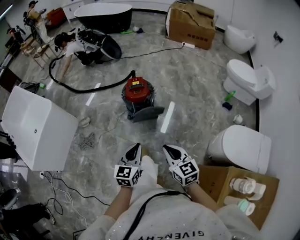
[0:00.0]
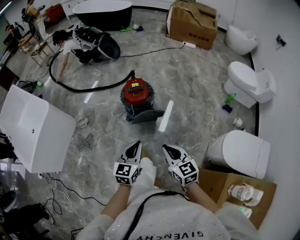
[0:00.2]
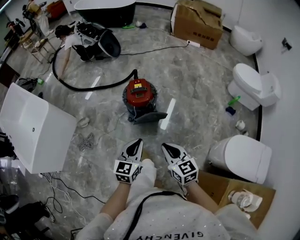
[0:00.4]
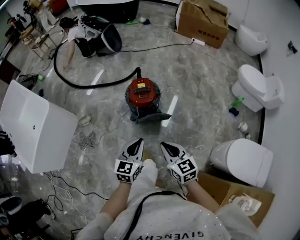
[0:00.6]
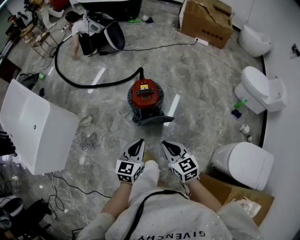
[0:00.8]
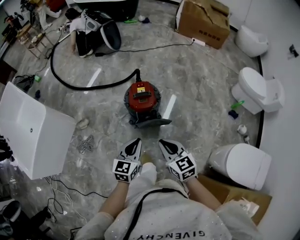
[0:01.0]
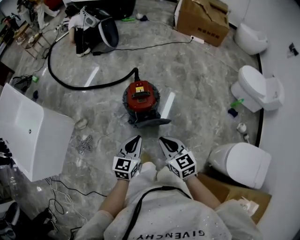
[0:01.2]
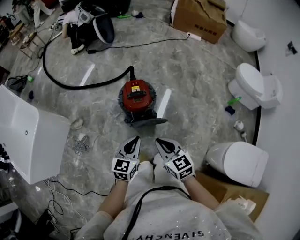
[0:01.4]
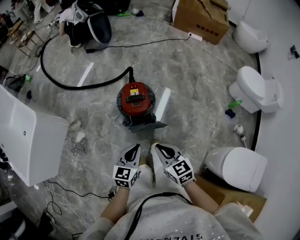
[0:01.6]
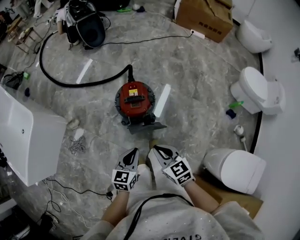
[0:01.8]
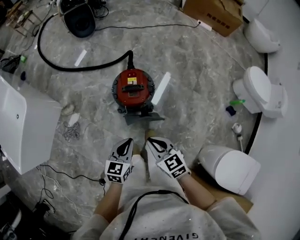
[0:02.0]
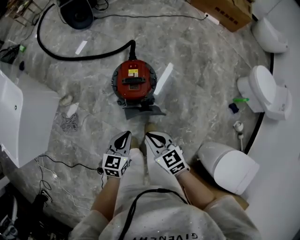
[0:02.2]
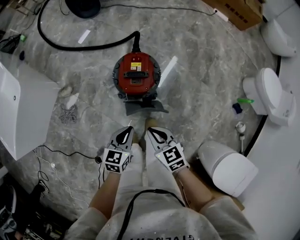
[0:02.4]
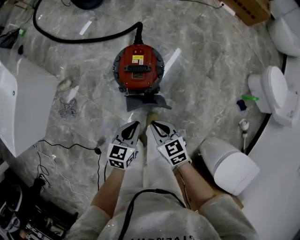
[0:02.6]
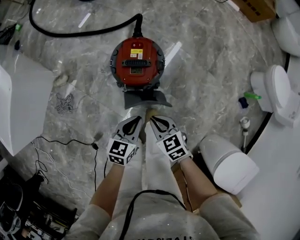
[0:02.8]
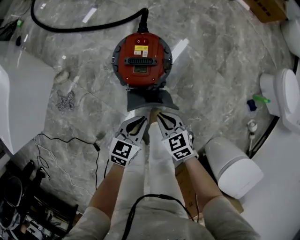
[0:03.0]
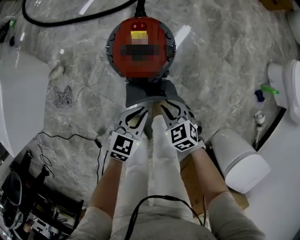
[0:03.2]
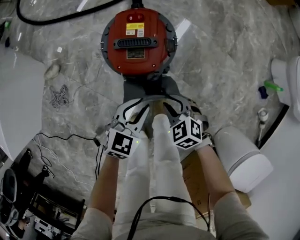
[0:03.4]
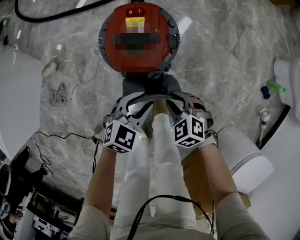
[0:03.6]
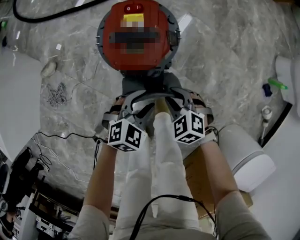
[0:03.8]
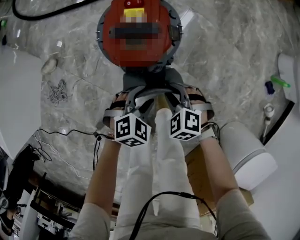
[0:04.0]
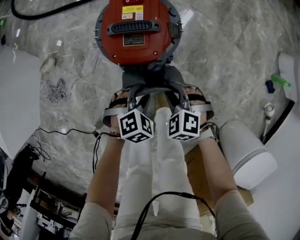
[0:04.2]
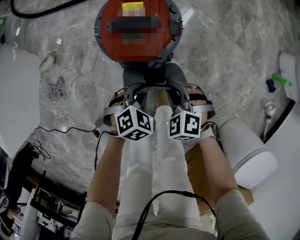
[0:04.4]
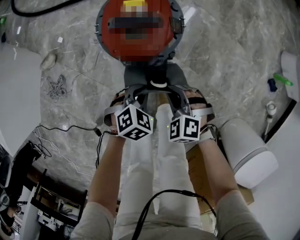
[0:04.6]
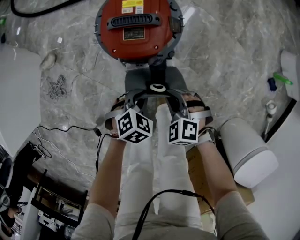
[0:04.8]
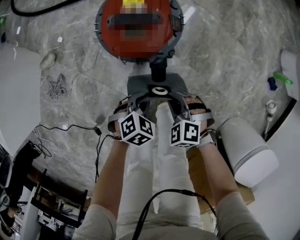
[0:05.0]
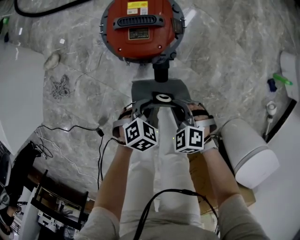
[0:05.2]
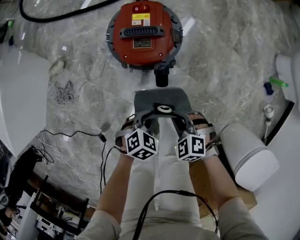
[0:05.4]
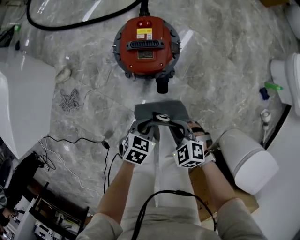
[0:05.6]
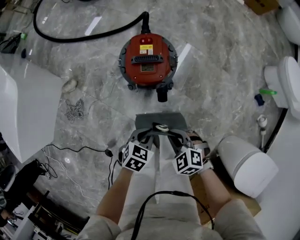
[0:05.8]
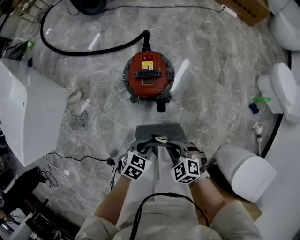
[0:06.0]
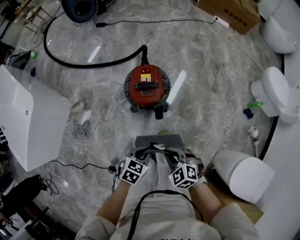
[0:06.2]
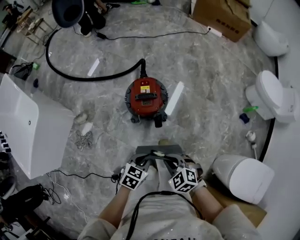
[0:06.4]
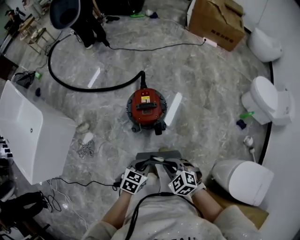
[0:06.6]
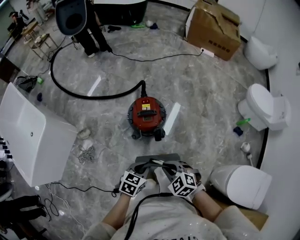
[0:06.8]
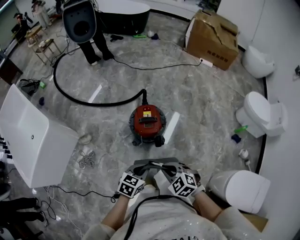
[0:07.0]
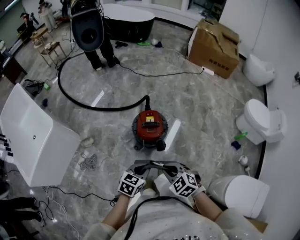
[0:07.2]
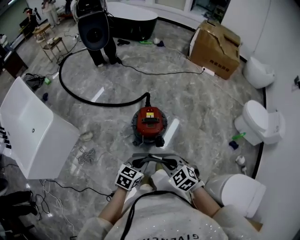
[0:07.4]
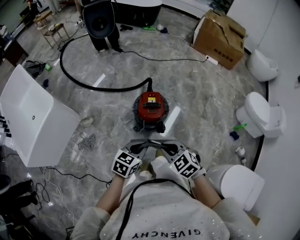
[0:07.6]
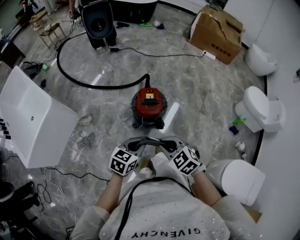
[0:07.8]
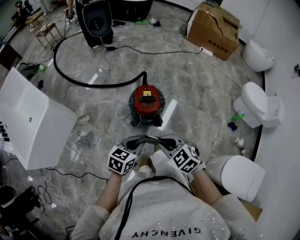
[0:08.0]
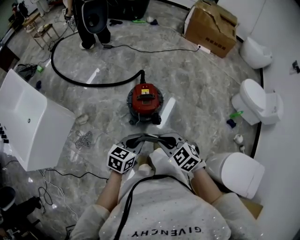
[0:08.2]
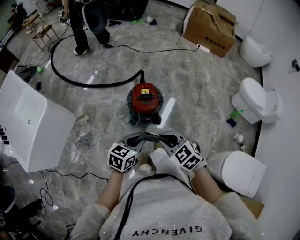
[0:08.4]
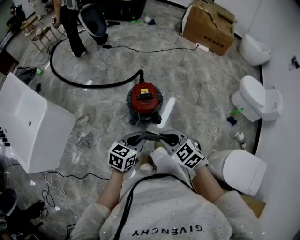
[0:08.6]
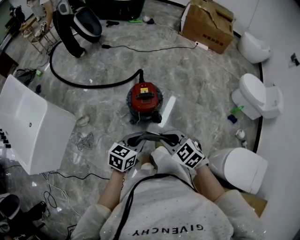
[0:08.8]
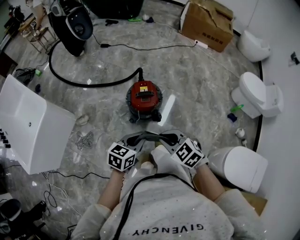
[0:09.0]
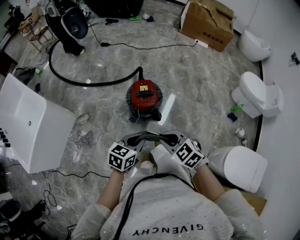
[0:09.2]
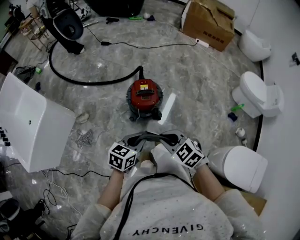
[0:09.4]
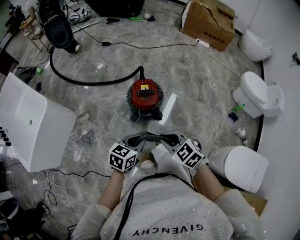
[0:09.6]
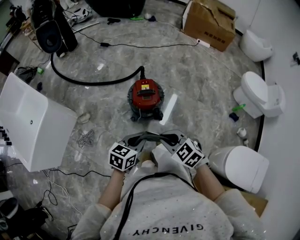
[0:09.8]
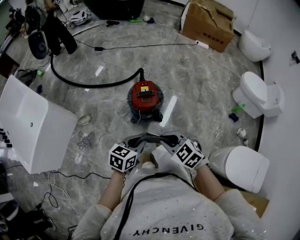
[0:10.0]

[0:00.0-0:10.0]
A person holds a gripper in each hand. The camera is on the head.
0:00.0 to 0:01.4: Both grippers travel together forward, some 20 cm.
0:01.4 to 0:02.8: Both grippers travel together downward and forward, about 20 cm. The right gripper rotates some 30 degrees.
0:02.8 to 0:04.2: Both grippers move downward, about 20 cm. The right gripper changes its angle by roughly 40 degrees, and opens up, while the left gripper twists some 50 degrees clockwise, seen from behind, and opens its fingers.
0:04.2 to 0:05.8: The two grippers go roughly 15 cm upward and backward. The left gripper changes its angle by approximately 30 degrees, and closes.
0:05.8 to 0:07.2: The two grippers go roughly 25 cm upward. The left gripper swivels some 20 degrees.
0:07.2 to 0:08.6: The grippers both shift upward by about 5 cm.
0:08.6 to 0:10.0: The grippers make only small movements.

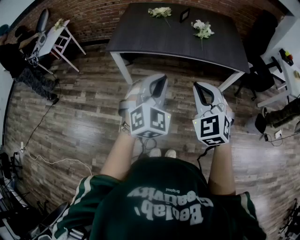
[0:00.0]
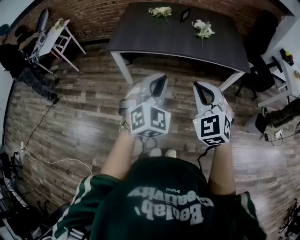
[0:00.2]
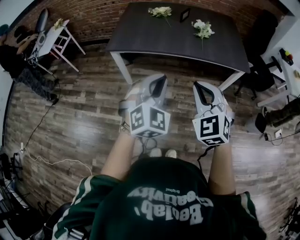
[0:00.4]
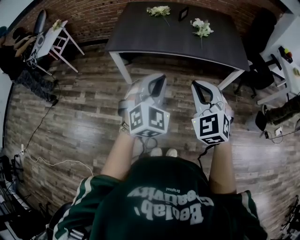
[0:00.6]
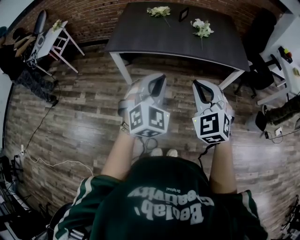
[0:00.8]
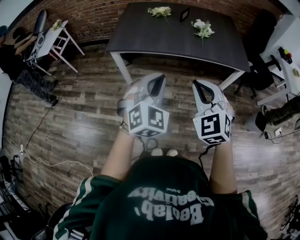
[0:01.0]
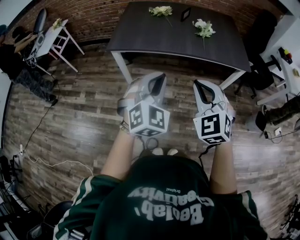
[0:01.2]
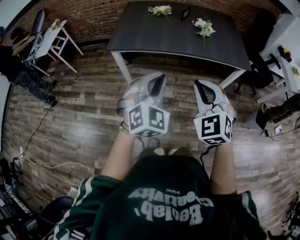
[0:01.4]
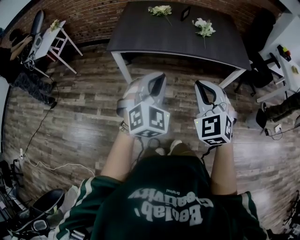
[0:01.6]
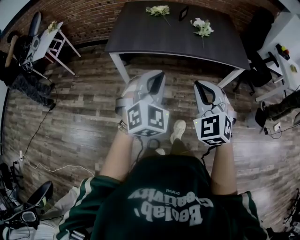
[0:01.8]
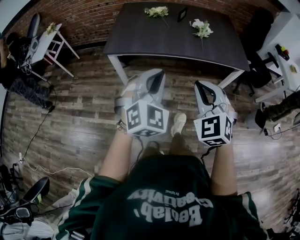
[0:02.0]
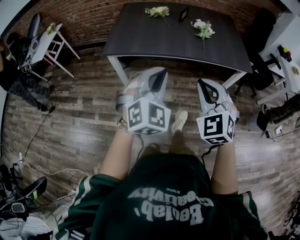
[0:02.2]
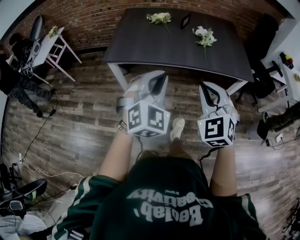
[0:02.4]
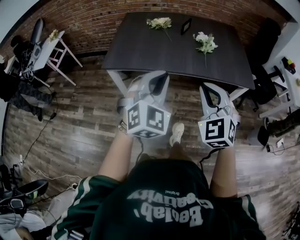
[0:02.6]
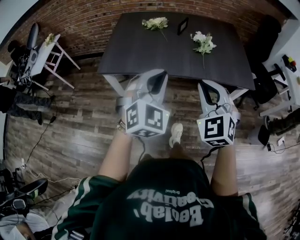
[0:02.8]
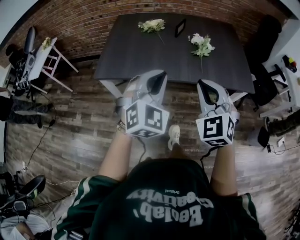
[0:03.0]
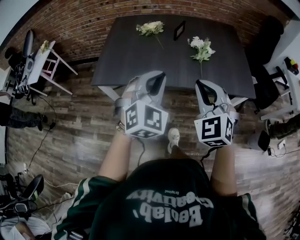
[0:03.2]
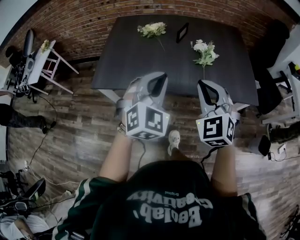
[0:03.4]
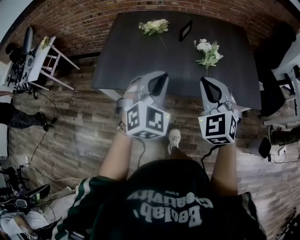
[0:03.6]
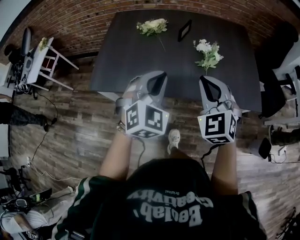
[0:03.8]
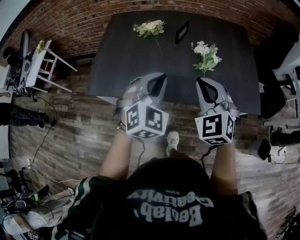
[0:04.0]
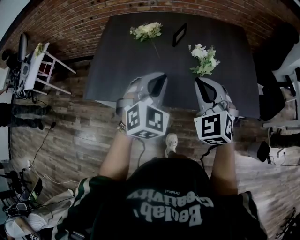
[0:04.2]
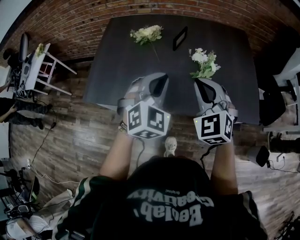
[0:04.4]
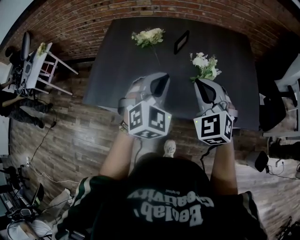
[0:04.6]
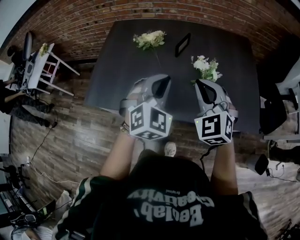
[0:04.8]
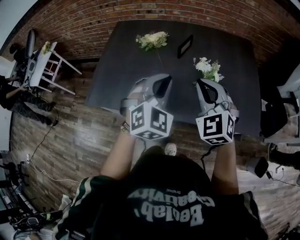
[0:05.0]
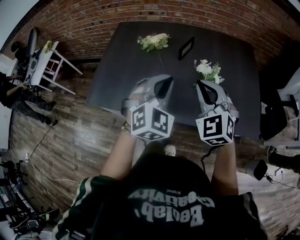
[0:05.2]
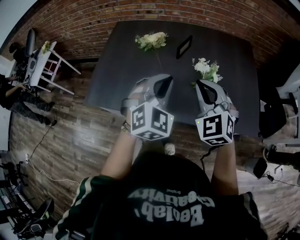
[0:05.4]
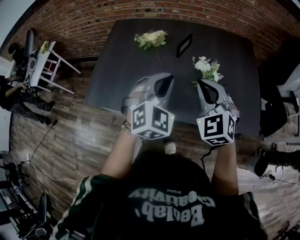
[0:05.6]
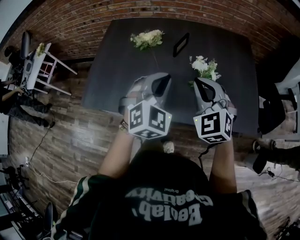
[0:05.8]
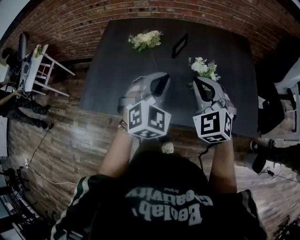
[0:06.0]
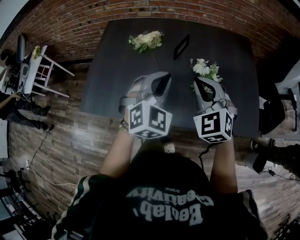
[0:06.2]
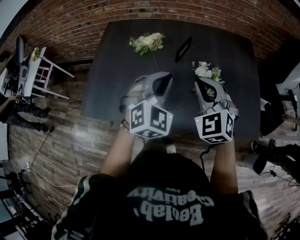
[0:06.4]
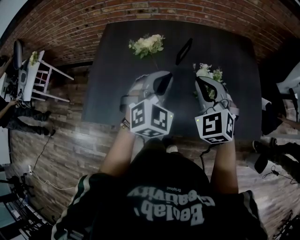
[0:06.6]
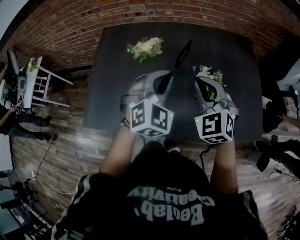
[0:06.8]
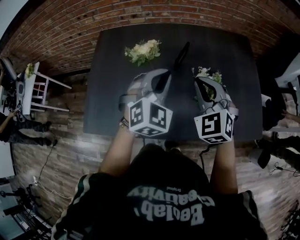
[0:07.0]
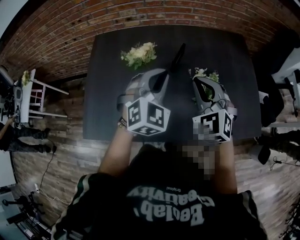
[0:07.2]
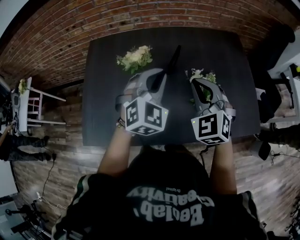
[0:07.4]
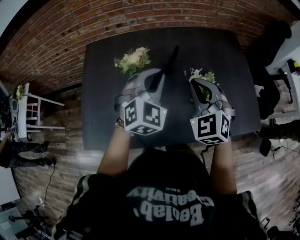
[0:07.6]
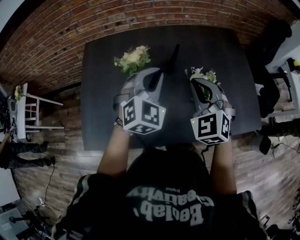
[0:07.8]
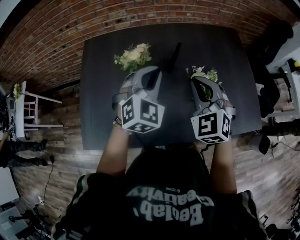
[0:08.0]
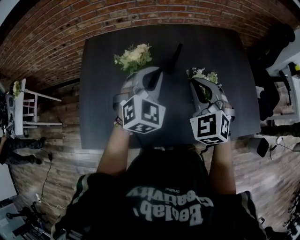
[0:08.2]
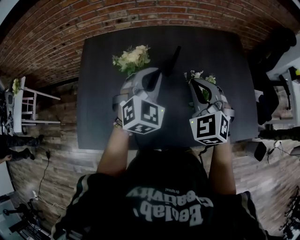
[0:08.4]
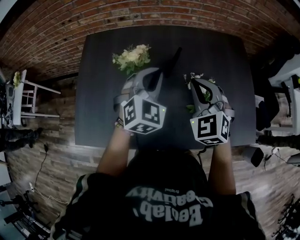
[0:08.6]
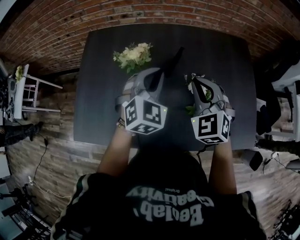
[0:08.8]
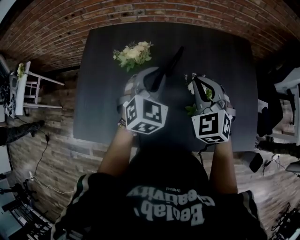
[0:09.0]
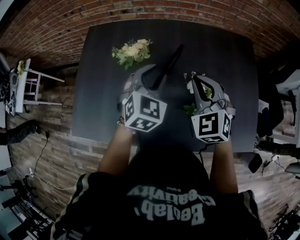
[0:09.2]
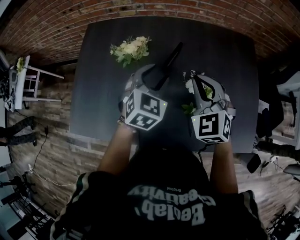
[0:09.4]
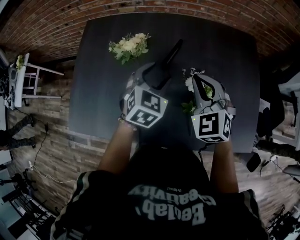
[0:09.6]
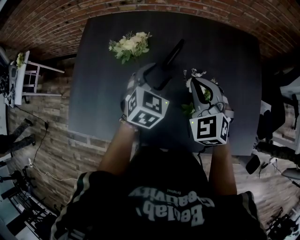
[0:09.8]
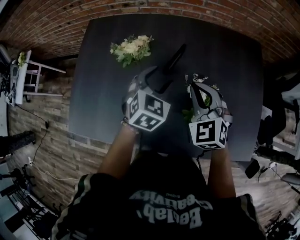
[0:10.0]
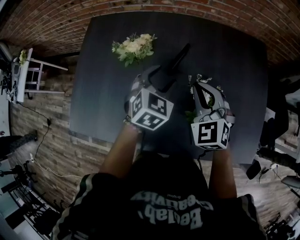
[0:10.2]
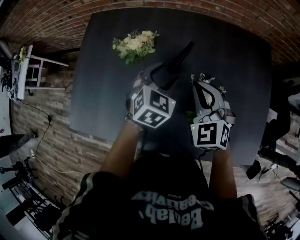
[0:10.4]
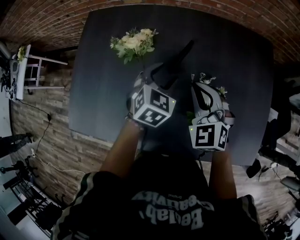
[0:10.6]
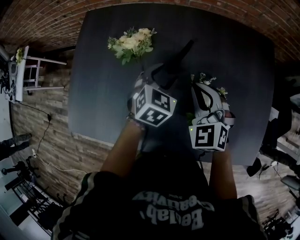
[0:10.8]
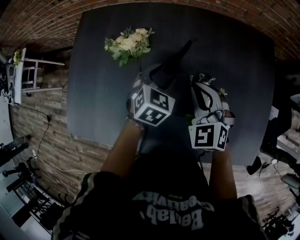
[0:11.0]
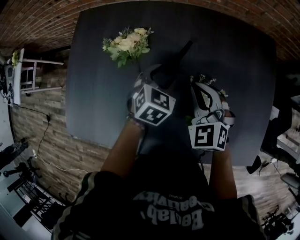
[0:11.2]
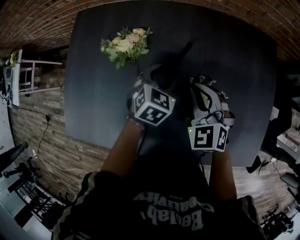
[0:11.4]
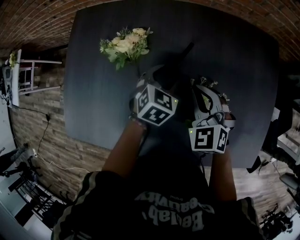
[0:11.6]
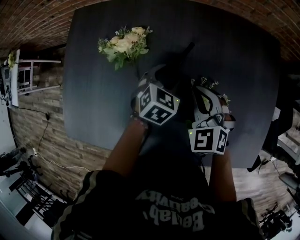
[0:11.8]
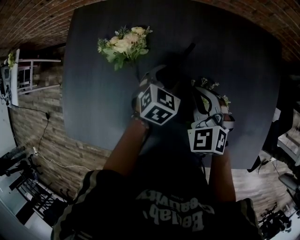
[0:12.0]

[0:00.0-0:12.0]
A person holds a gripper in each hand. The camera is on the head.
0:00.0 to 0:01.6: The two grippers go some 5 cm to the left.
0:01.6 to 0:03.0: Both grippers travel together forward, approximately 25 cm.
0:03.0 to 0:04.4: Both grippers move forward, roughly 25 cm.
0:04.4 to 0:06.0: The two grippers go roughly 5 cm forward.
0:06.0 to 0:07.6: Both grippers travel together forward, roughly 15 cm.
0:07.6 to 0:09.0: The two grippers go roughly 5 cm forward.
0:09.0 to 0:10.4: The left gripper is displaced downward and forward by about 10 cm, and opens up. Meanwhile the right gripper moves downward, roughly 10 cm.
0:10.4 to 0:12.0: The grippers both shift downward and forward by approximately 10 cm.

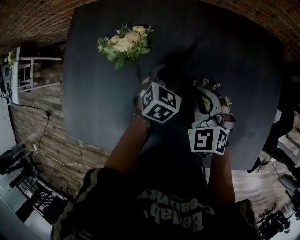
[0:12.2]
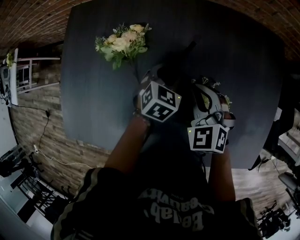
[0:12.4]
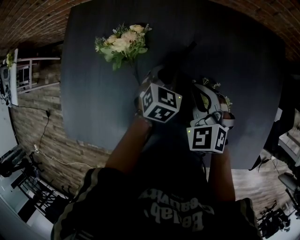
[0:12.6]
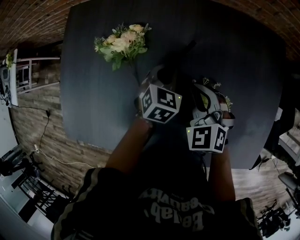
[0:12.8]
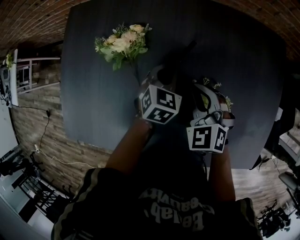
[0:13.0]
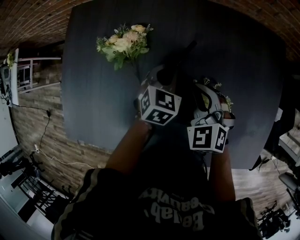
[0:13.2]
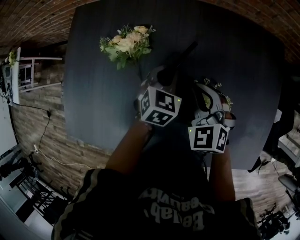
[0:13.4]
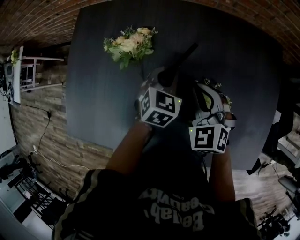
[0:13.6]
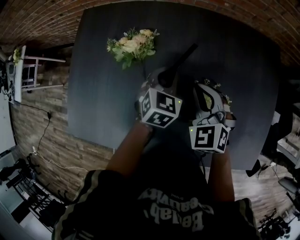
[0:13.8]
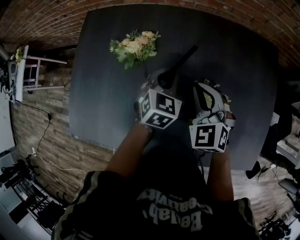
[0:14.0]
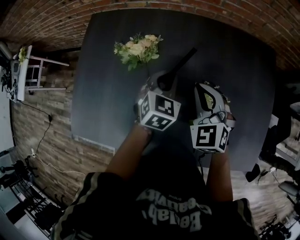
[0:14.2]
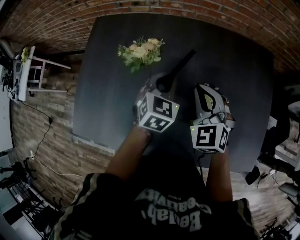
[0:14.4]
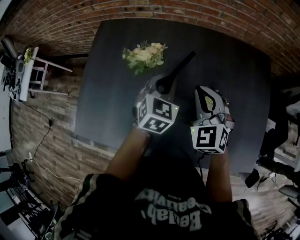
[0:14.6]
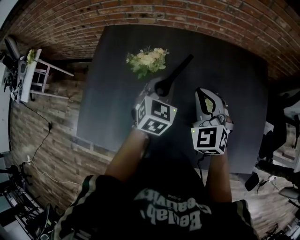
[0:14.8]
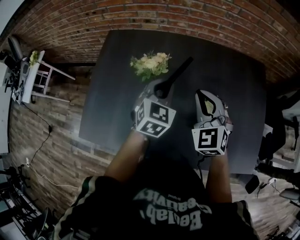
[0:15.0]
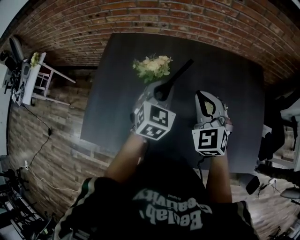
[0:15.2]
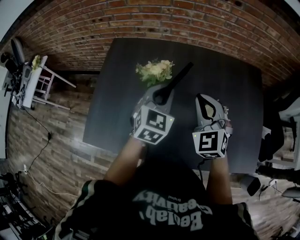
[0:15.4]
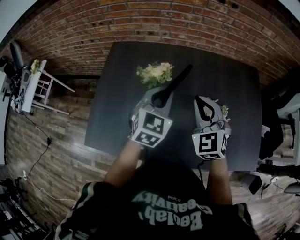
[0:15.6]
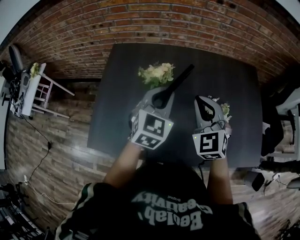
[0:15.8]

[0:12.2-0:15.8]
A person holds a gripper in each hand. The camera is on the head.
0:12.2 to 0:14.0: The grippers both shift upward by approximately 5 cm. The left gripper closes up.
0:14.0 to 0:15.8: The grippers both shift upward, backward and to the left by roughly 25 cm.
